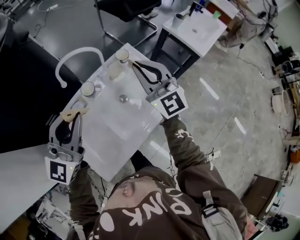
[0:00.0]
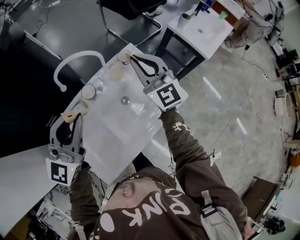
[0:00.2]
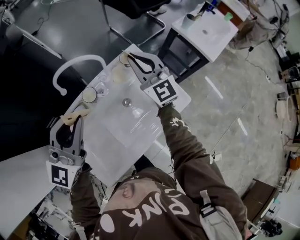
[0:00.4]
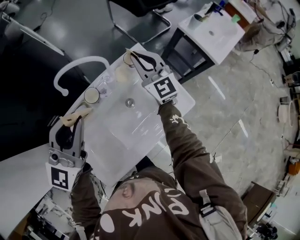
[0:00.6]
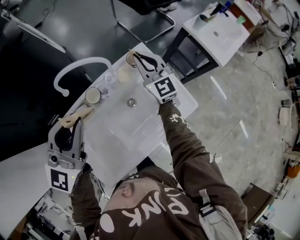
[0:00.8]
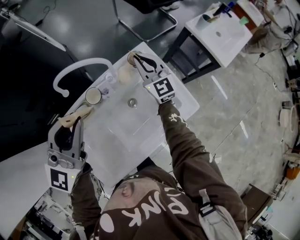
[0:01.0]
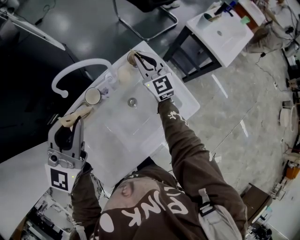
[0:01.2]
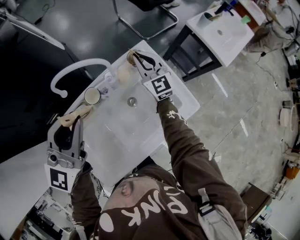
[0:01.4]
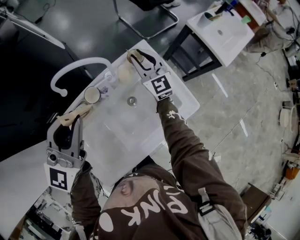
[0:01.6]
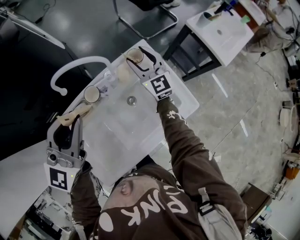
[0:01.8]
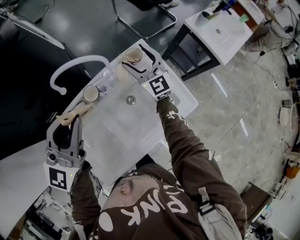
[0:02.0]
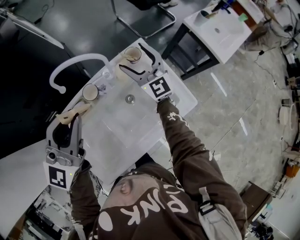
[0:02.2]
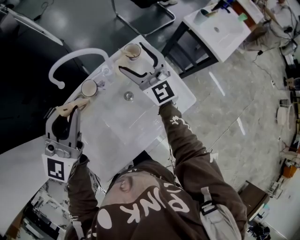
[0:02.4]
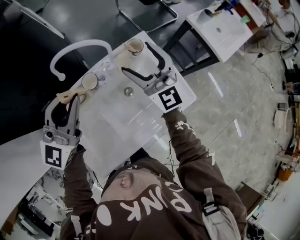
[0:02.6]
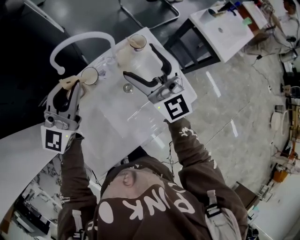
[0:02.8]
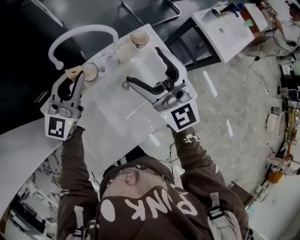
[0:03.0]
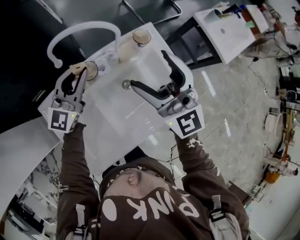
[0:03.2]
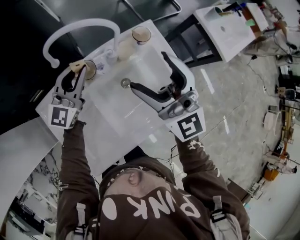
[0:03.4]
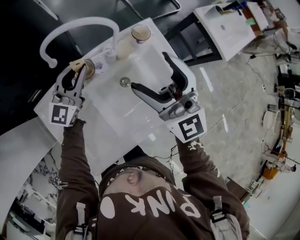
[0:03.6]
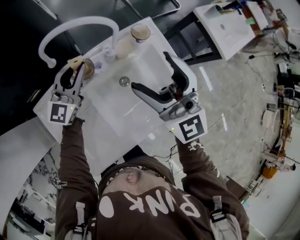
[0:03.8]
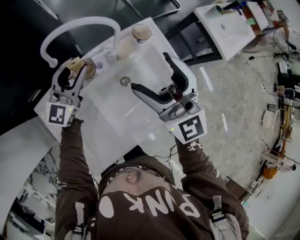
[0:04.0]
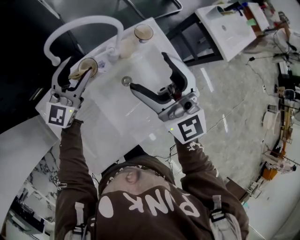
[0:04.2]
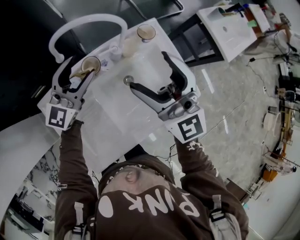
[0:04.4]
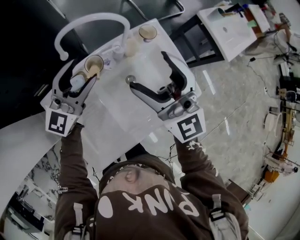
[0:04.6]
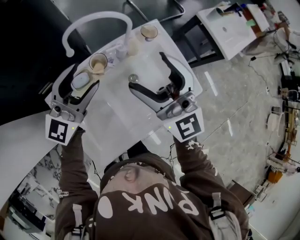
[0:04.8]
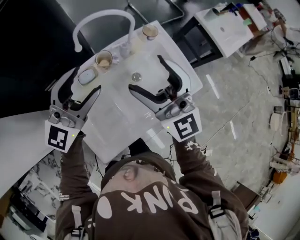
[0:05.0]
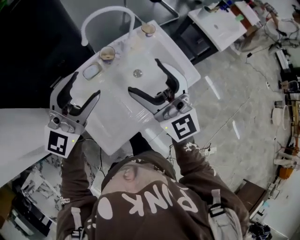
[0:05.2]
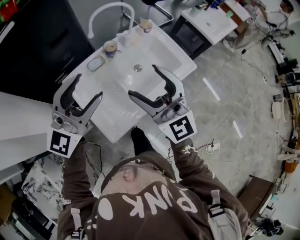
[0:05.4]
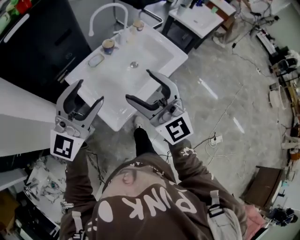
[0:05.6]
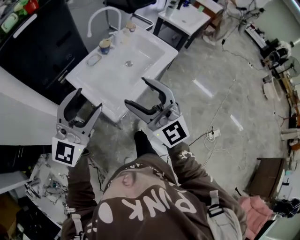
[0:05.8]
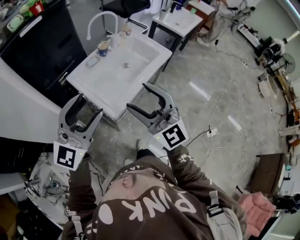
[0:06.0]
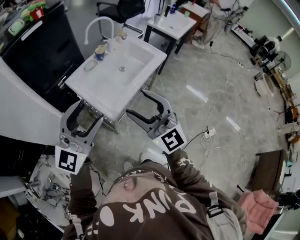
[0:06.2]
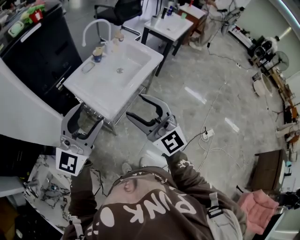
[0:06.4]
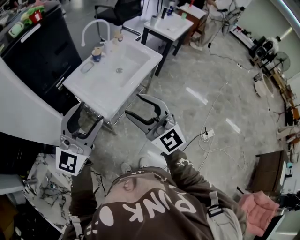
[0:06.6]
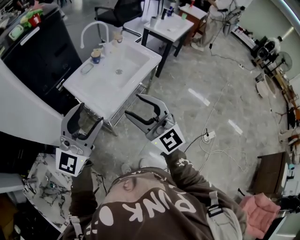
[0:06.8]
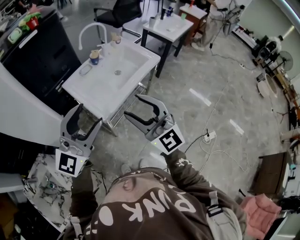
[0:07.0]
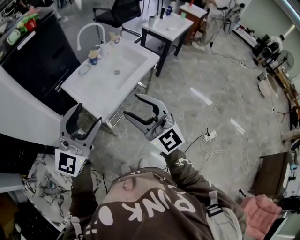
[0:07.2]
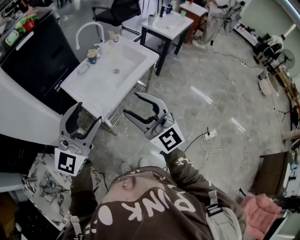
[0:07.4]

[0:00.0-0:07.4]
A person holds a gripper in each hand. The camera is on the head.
0:00.0 to 0:01.4: The left gripper shifts about 10 cm forward. The right gripper goes approximately 25 cm forward and downward.
0:01.4 to 0:03.0: The left gripper heads downward, covering some 10 cm. The right gripper moves backward and upward, roughly 20 cm, and opens its fingers.
0:03.0 to 0:04.4: The left gripper opens.
0:04.4 to 0:06.0: The pair of grippers is taken backward, some 50 cm.
0:06.0 to 0:07.4: Both grippers travel together to the right and backward, approximately 10 cm.

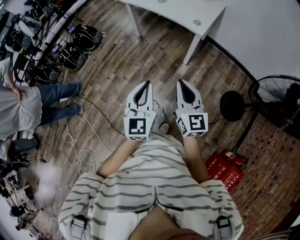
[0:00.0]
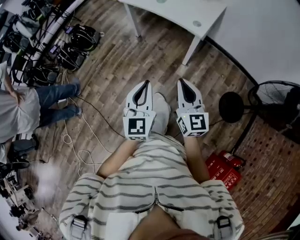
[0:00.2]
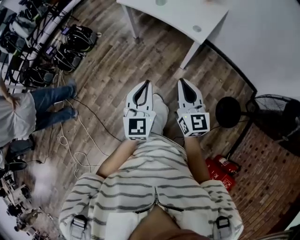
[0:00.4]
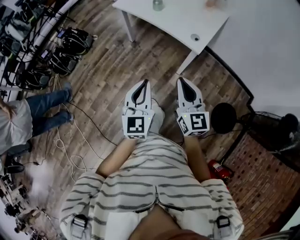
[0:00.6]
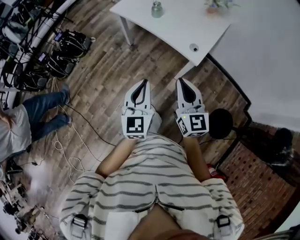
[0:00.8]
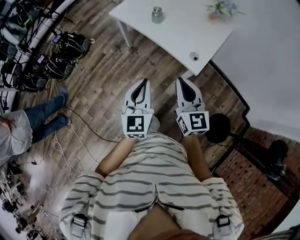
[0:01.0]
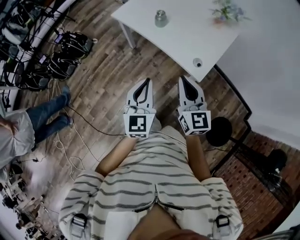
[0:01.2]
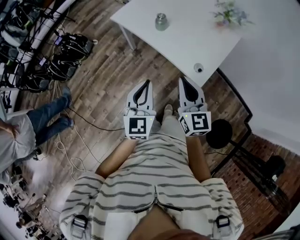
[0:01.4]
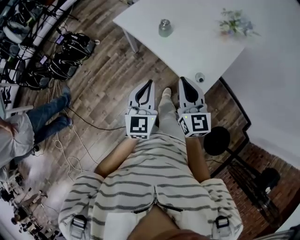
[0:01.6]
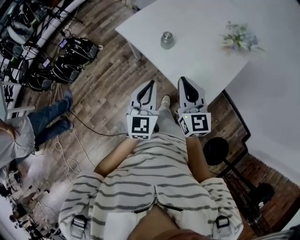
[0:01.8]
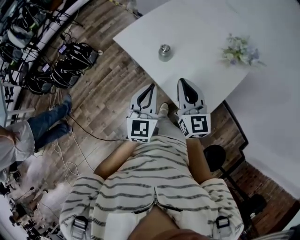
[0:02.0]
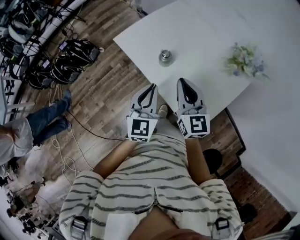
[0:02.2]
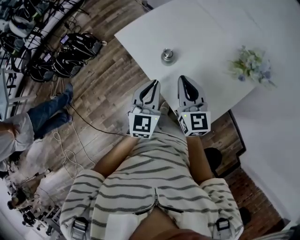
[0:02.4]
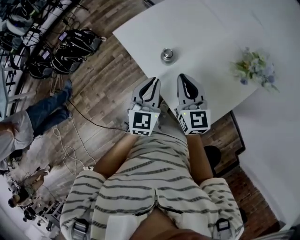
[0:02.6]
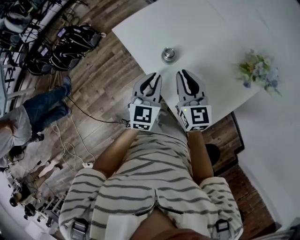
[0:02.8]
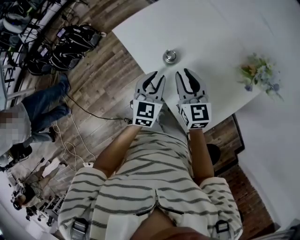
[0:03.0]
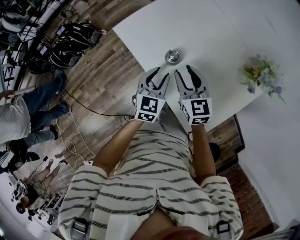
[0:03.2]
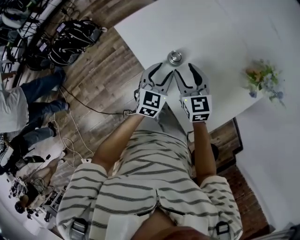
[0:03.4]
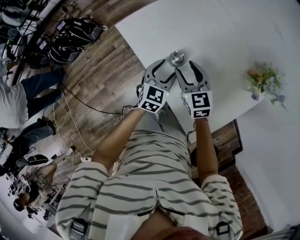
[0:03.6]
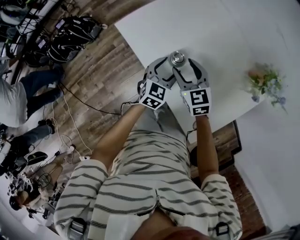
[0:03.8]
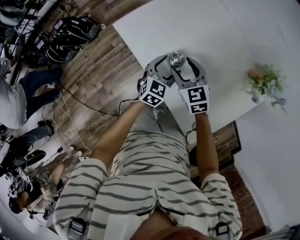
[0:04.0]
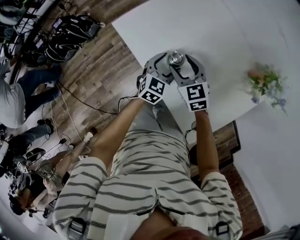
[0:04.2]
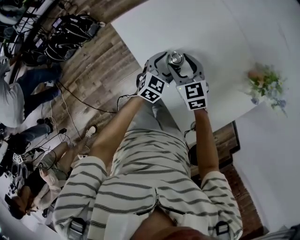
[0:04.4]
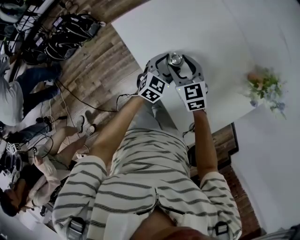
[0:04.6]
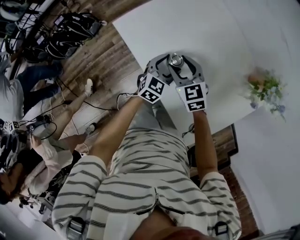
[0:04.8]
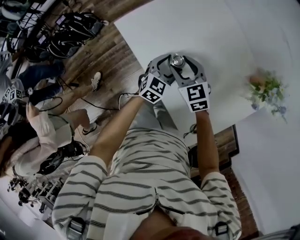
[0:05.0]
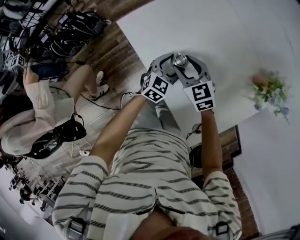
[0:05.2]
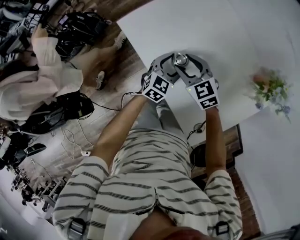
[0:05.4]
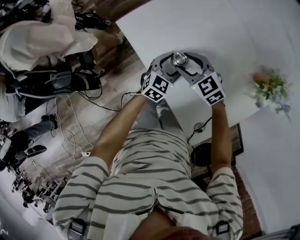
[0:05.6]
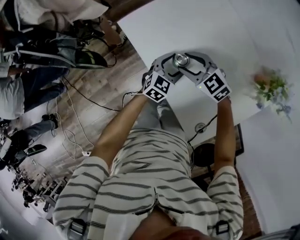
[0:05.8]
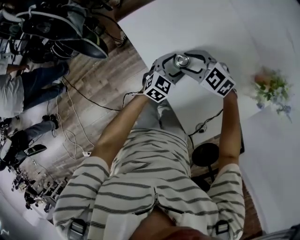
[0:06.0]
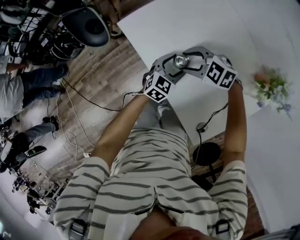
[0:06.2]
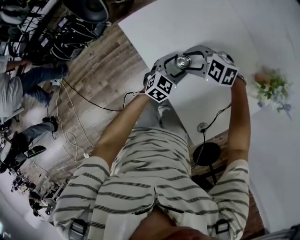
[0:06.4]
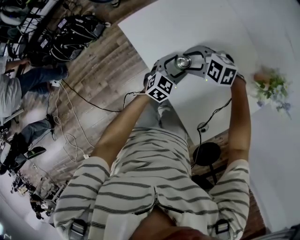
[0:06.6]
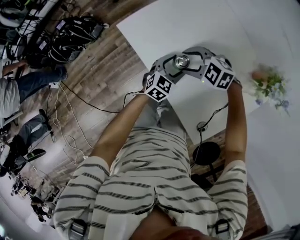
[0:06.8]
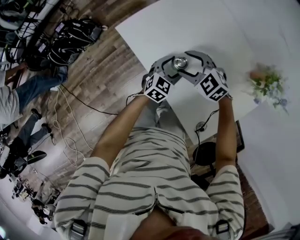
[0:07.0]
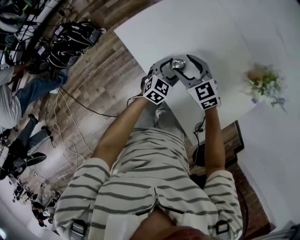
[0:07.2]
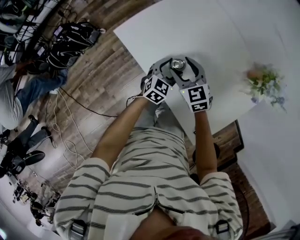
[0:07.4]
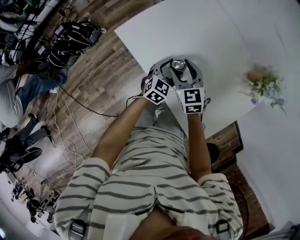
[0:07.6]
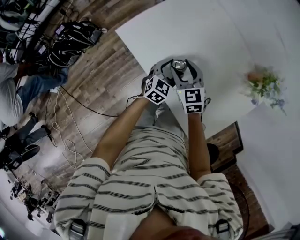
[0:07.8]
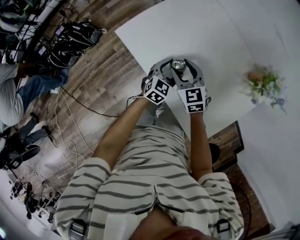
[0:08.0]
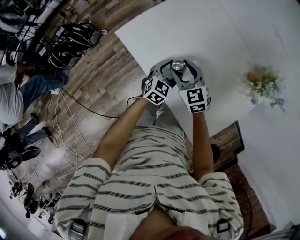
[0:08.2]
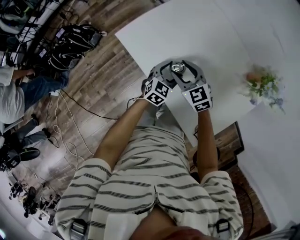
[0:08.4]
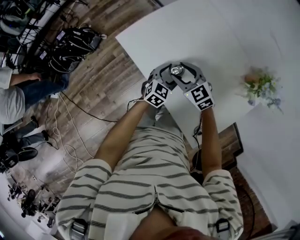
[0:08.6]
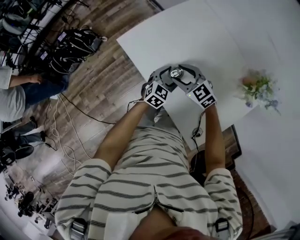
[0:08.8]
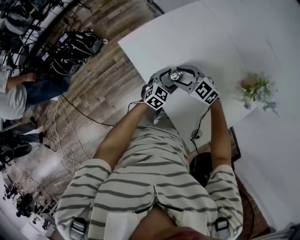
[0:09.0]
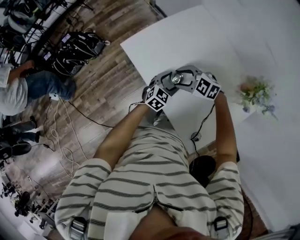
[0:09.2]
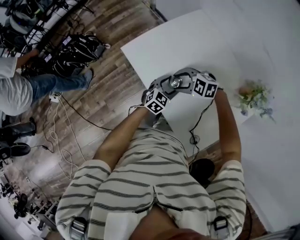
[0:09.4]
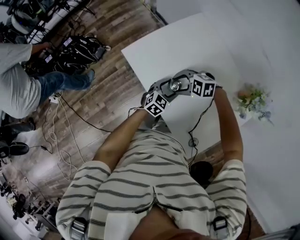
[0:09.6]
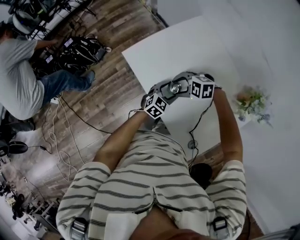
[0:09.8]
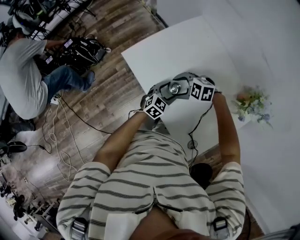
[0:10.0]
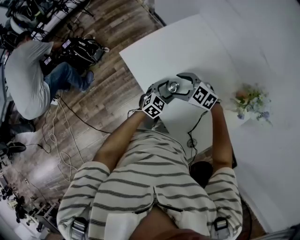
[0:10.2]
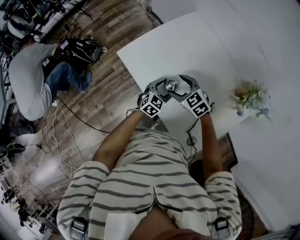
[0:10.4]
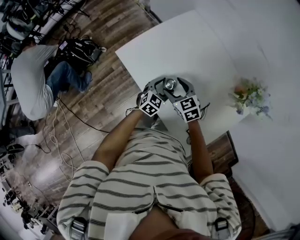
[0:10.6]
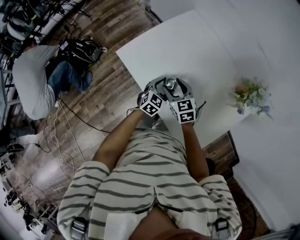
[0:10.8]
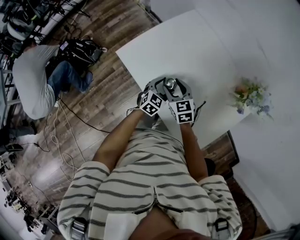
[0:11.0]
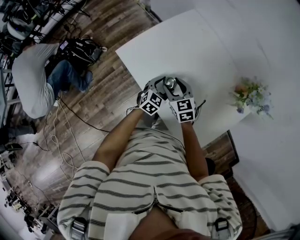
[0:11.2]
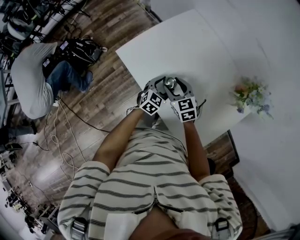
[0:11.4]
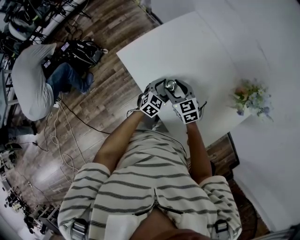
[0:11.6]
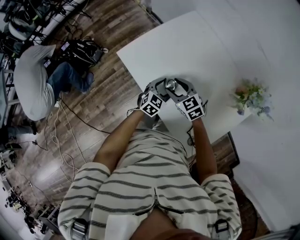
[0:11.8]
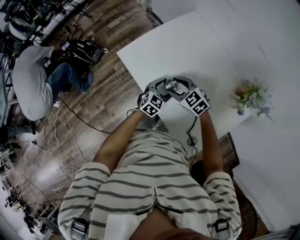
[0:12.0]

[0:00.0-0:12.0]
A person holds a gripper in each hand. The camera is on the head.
0:00.0 to 0:01.6: The pair of grippers is taken forward, some 50 cm.
0:01.6 to 0:03.0: The left gripper shifts roughly 30 cm forward and downward; the right gripper shifts roughly 30 cm forward.
0:03.0 to 0:04.4: Both grippers move downward and forward, roughly 10 cm. The right gripper changes its angle by approximately 20 degrees, and opens its fingers. Meanwhile the left gripper opens.
0:04.4 to 0:06.0: The right gripper changes its angle by some 40 degrees.
0:06.0 to 0:07.6: The right gripper changes its angle by approximately 50 degrees.
0:07.6 to 0:09.0: The right gripper turns by some 40 degrees.

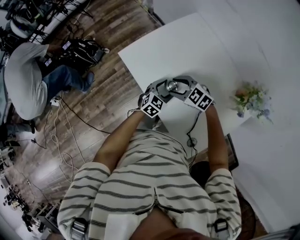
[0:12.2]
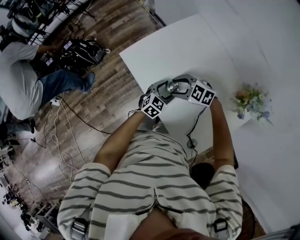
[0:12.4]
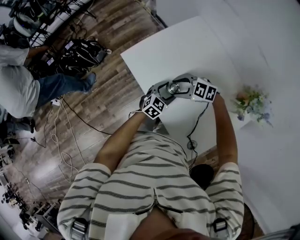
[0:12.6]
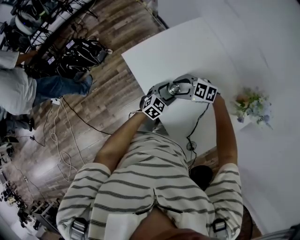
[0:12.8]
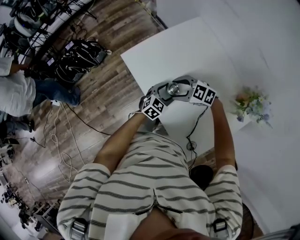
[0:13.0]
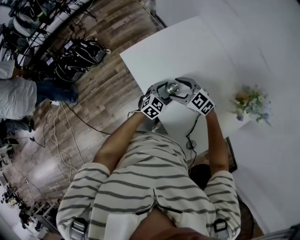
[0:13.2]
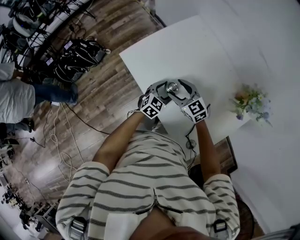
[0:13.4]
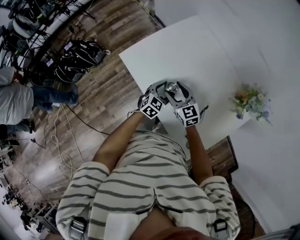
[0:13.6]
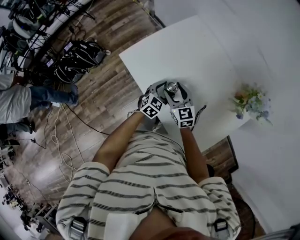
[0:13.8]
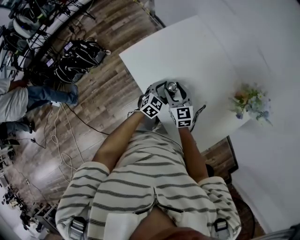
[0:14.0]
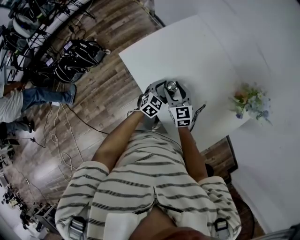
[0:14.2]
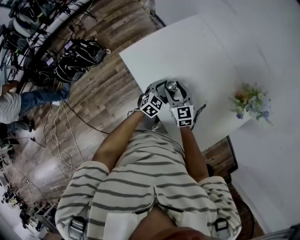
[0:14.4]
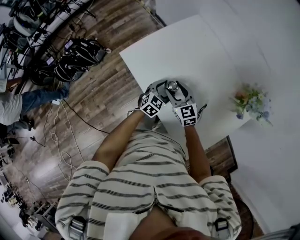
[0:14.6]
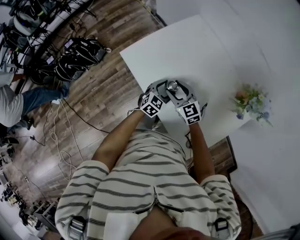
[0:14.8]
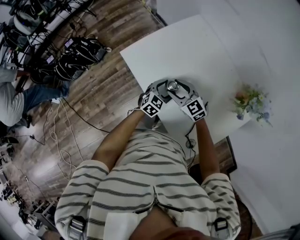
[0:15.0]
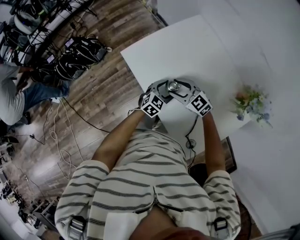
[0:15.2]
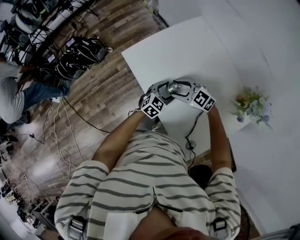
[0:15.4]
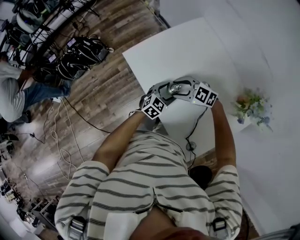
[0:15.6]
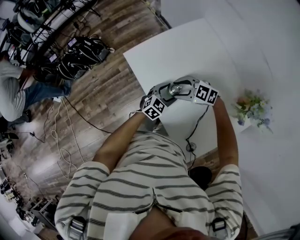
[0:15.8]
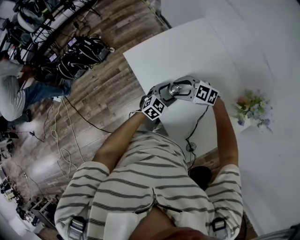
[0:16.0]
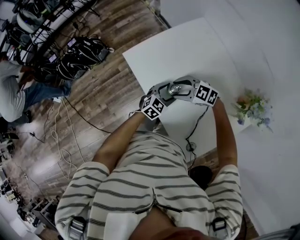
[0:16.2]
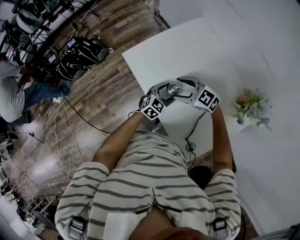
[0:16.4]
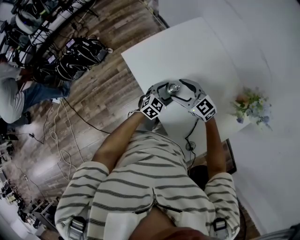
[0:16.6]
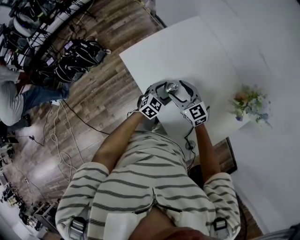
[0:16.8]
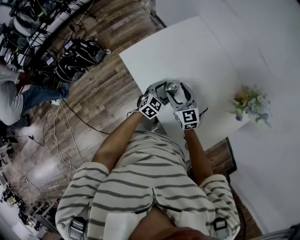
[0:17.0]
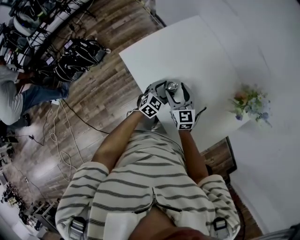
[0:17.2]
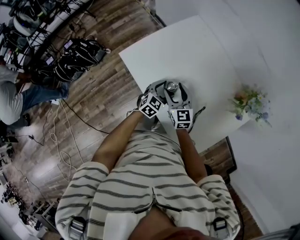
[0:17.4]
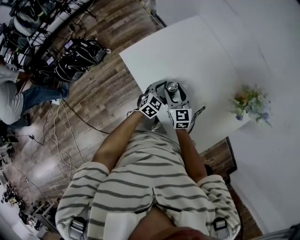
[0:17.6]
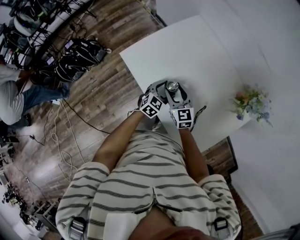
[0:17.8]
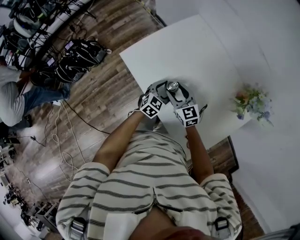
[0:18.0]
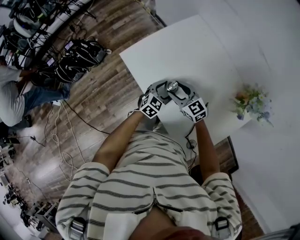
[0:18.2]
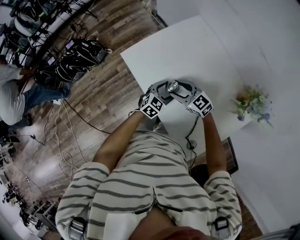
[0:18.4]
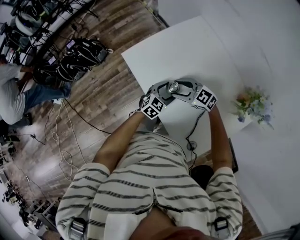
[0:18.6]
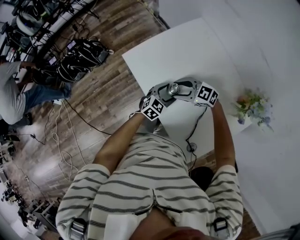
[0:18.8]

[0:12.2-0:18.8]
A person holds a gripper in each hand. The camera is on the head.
0:12.2 to 0:13.8: The right gripper swivels some 50 degrees.
0:13.8 to 0:15.4: The right gripper swivels roughly 50 degrees.
0:15.4 to 0:17.2: The right gripper rotates about 60 degrees.
0:17.2 to 0:18.8: The right gripper turns by approximately 60 degrees.
